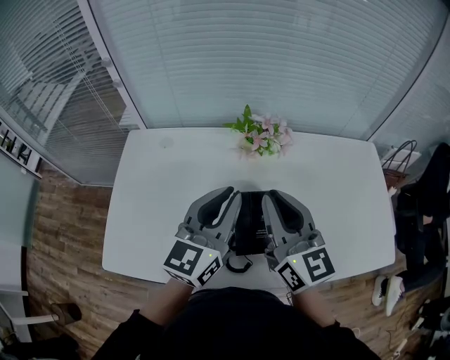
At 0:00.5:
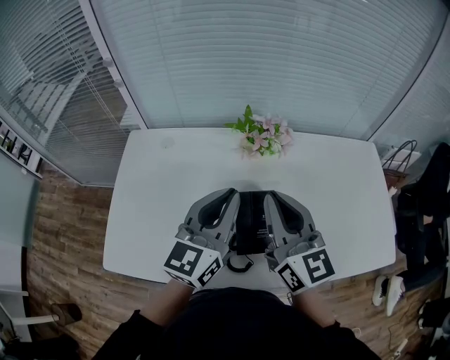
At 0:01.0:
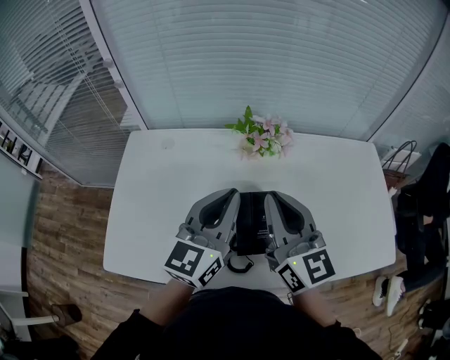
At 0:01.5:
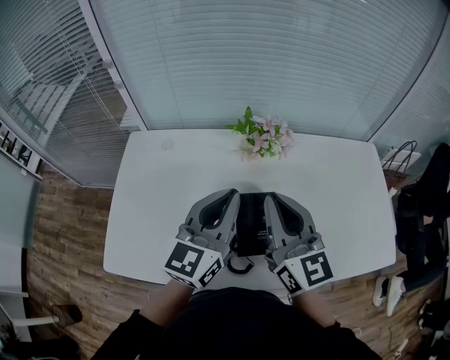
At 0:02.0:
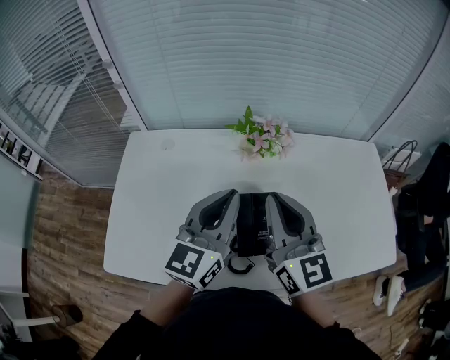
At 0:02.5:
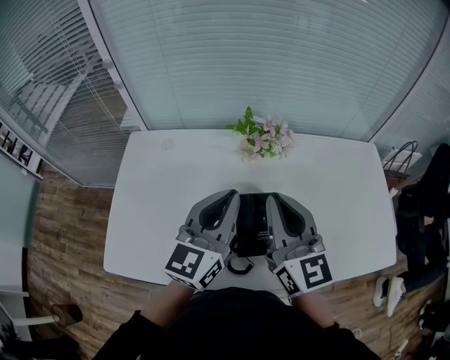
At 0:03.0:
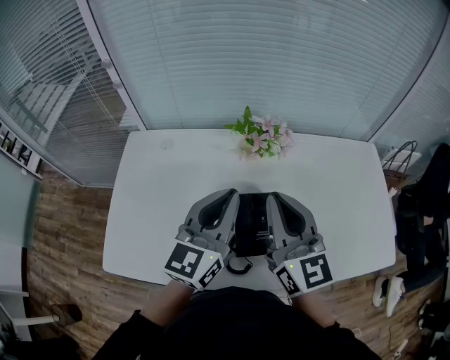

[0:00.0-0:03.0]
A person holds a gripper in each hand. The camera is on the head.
0:00.0 to 0:01.5: Both grippers stay put.
0:01.5 to 0:03.0: Both grippers stay about where they are.

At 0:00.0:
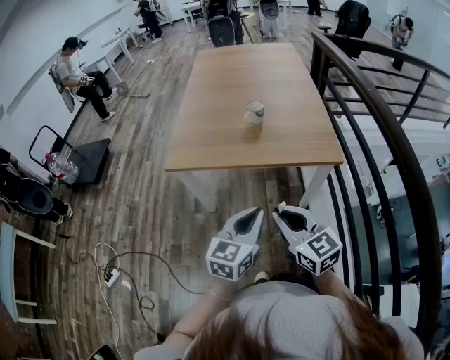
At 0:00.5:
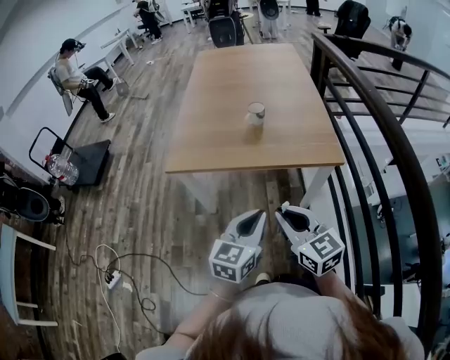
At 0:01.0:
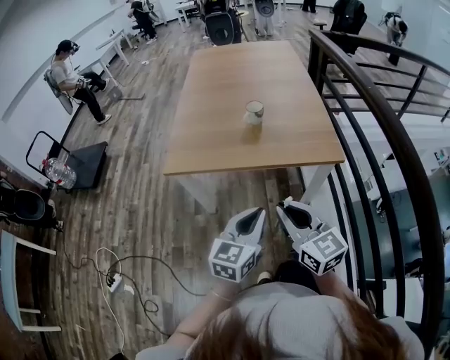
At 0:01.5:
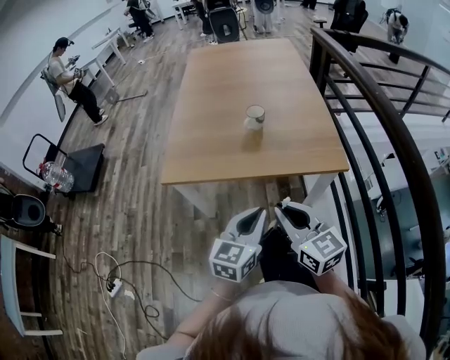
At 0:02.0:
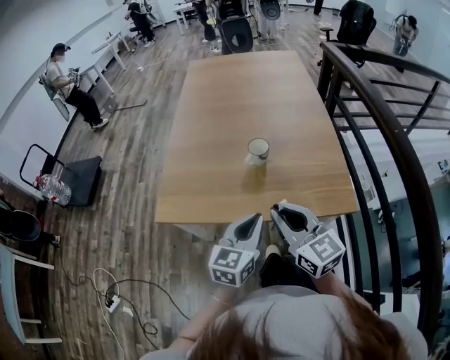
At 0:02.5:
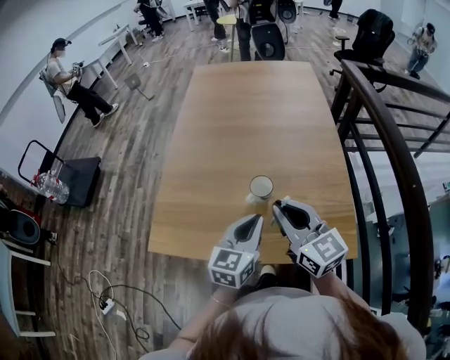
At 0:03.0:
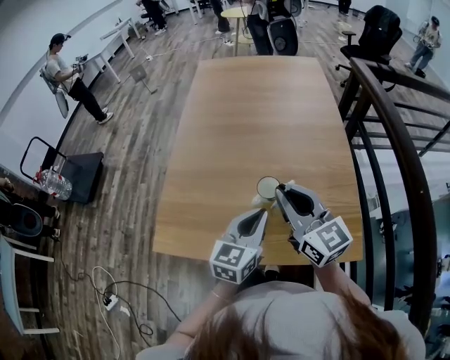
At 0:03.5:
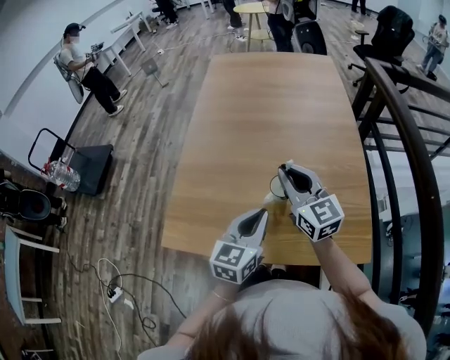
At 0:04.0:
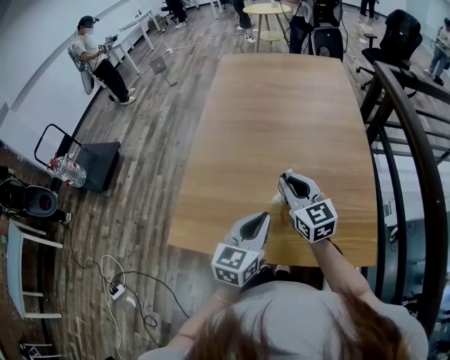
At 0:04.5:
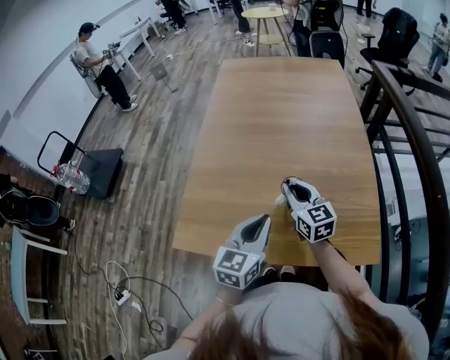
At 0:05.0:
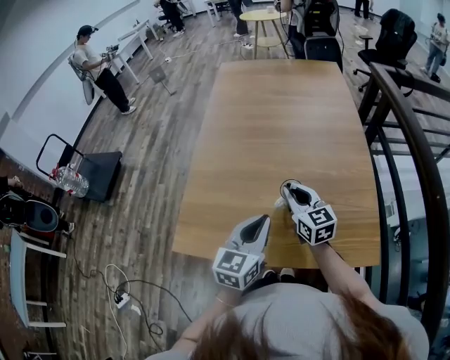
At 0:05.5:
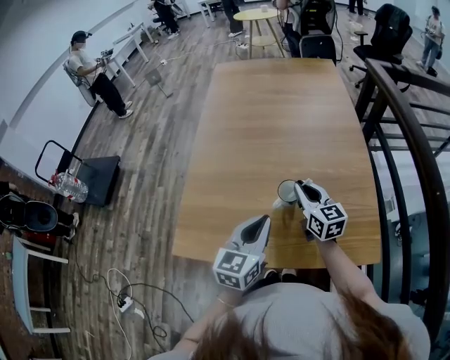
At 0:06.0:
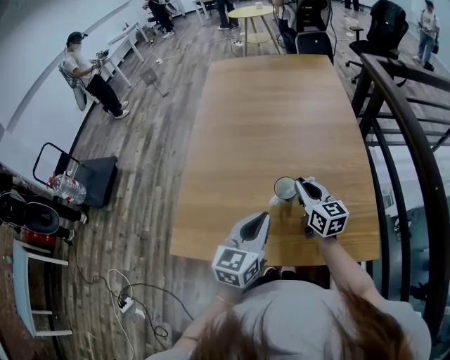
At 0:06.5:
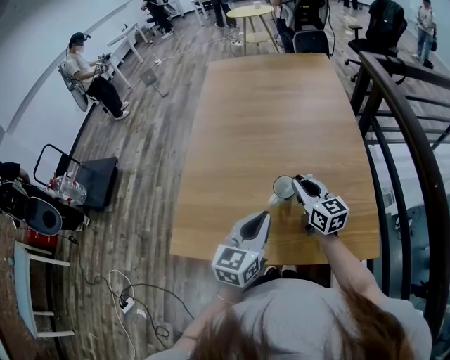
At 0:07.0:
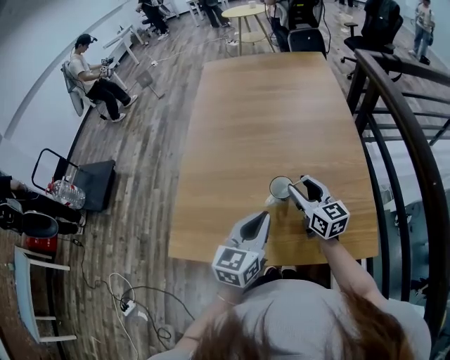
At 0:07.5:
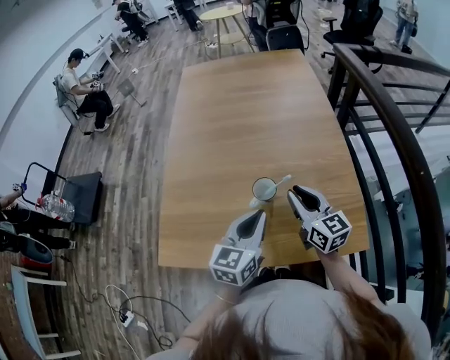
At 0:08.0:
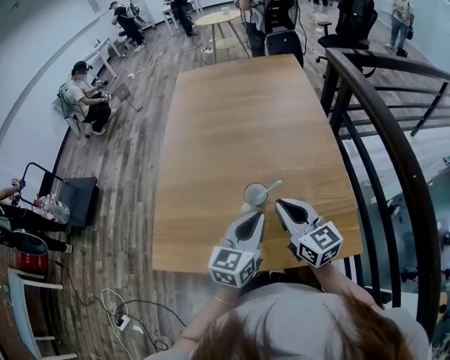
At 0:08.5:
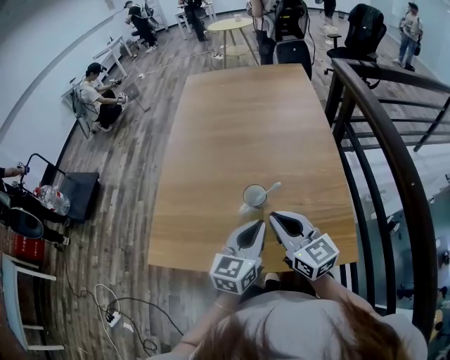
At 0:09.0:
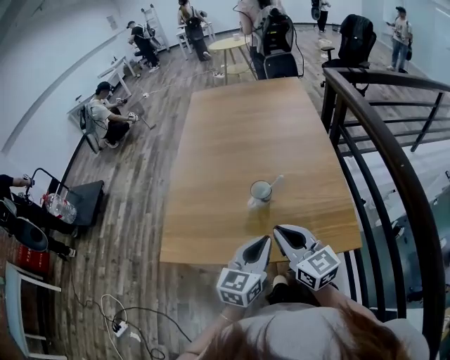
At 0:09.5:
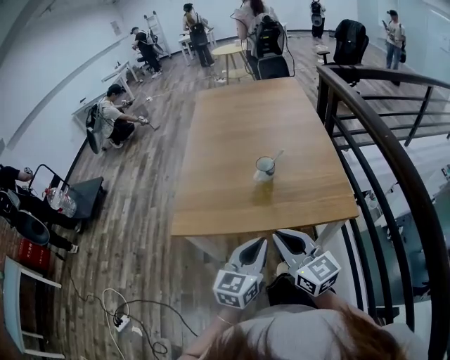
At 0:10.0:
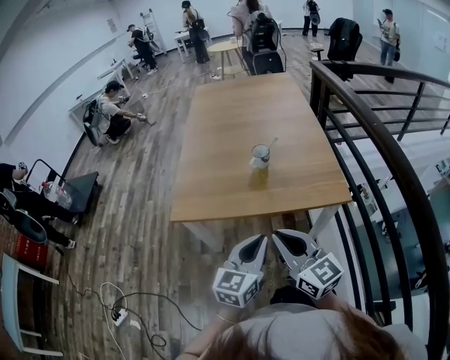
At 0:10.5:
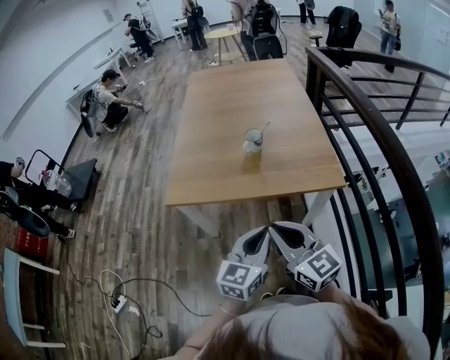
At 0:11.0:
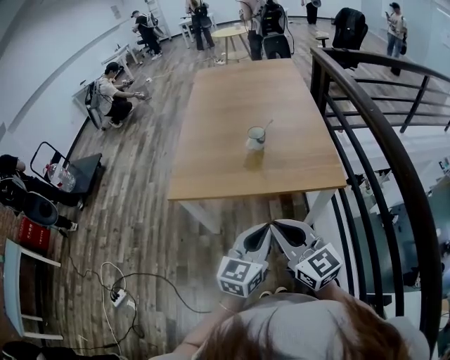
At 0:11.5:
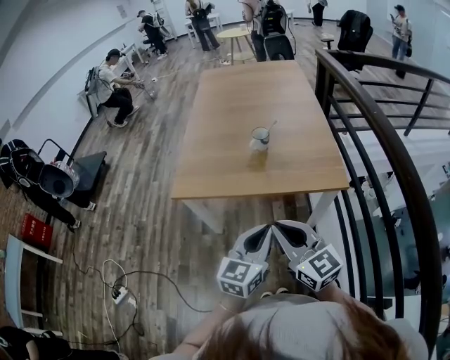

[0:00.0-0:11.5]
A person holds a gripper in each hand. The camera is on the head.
0:00.0 to 0:02.0: Both grippers move forward, about 20 cm.
0:02.0 to 0:04.0: The left gripper heads forward, covering about 15 cm; the right gripper heads forward, covering some 25 cm.
0:04.0 to 0:06.0: The right gripper heads to the right and downward, covering approximately 10 cm.
0:06.0 to 0:07.5: The right gripper heads backward, covering some 5 cm, and opens, then closes once more.
0:07.5 to 0:09.5: Both grippers move backward, some 25 cm.
0:09.5 to 0:11.5: The two grippers go some 10 cm backward.

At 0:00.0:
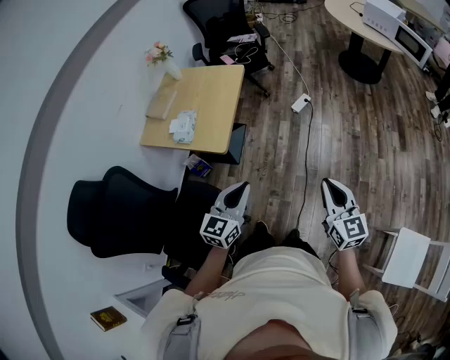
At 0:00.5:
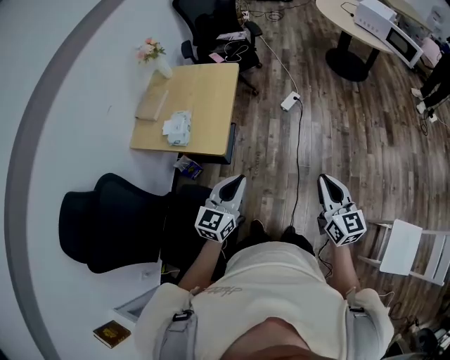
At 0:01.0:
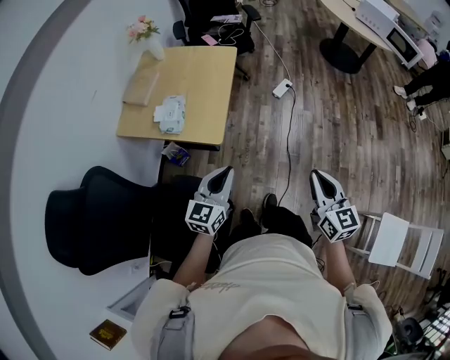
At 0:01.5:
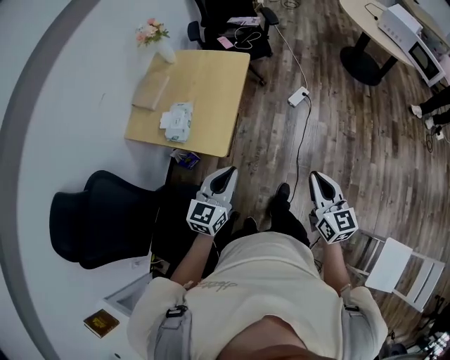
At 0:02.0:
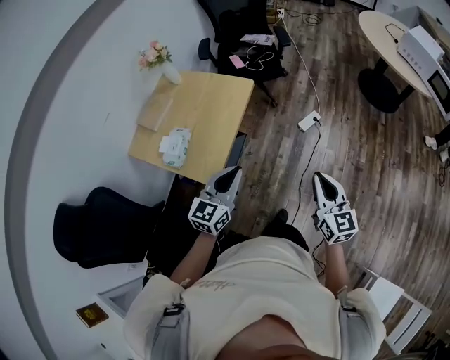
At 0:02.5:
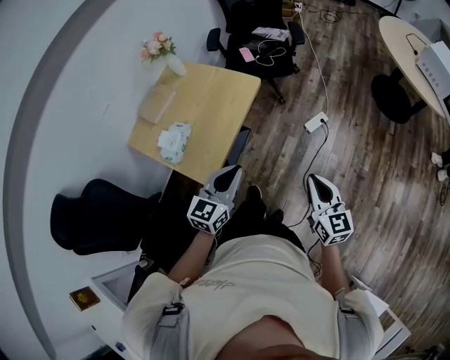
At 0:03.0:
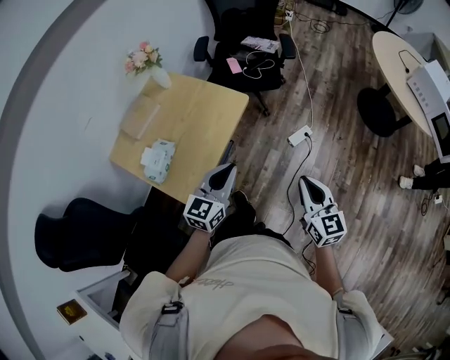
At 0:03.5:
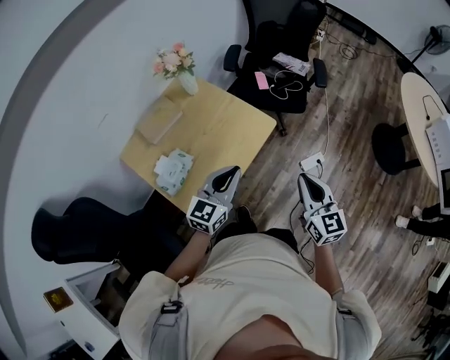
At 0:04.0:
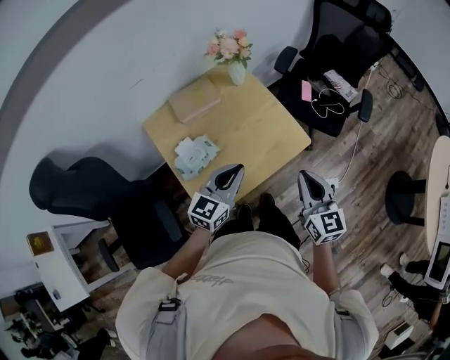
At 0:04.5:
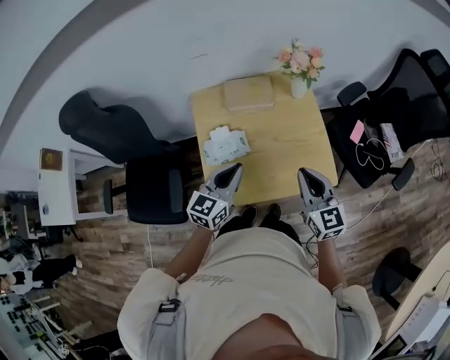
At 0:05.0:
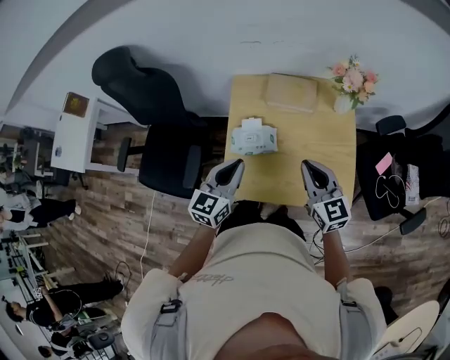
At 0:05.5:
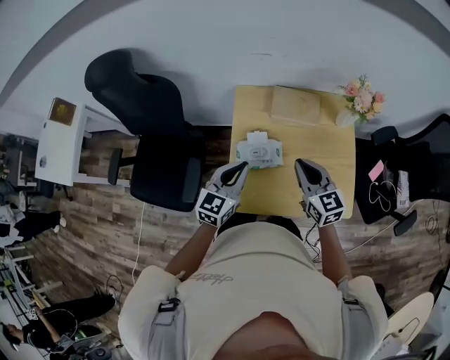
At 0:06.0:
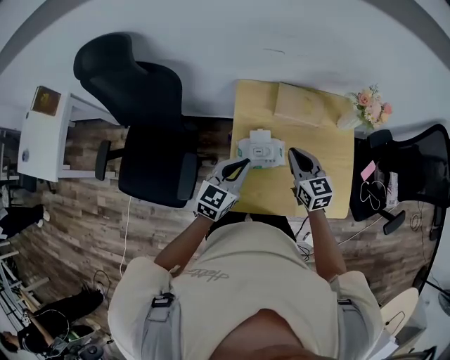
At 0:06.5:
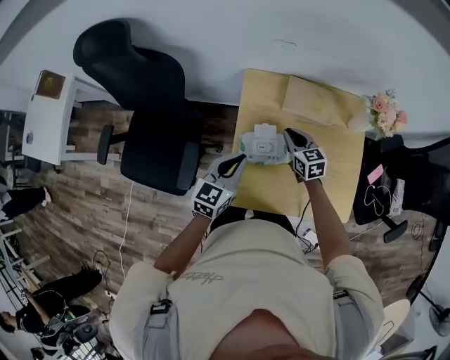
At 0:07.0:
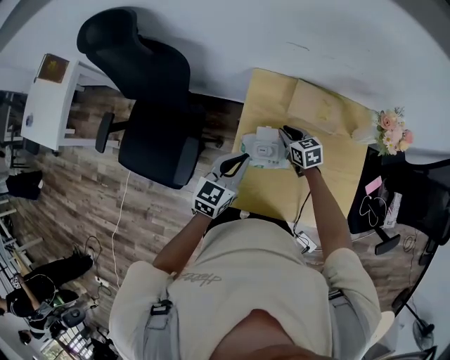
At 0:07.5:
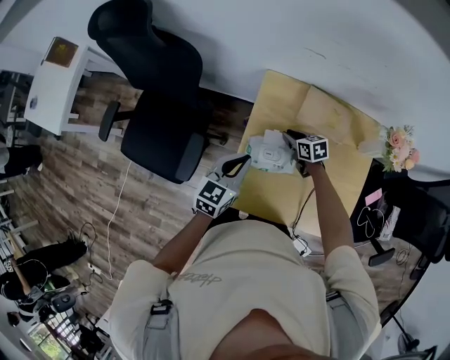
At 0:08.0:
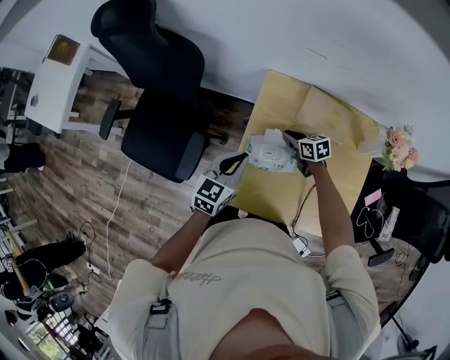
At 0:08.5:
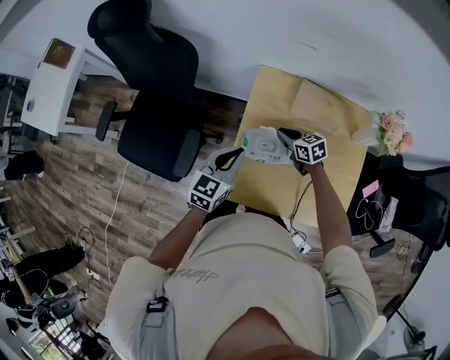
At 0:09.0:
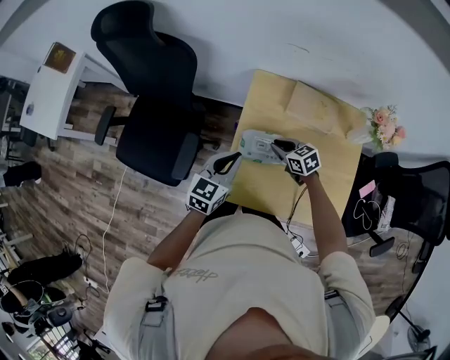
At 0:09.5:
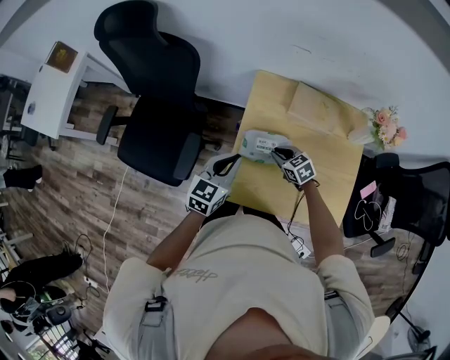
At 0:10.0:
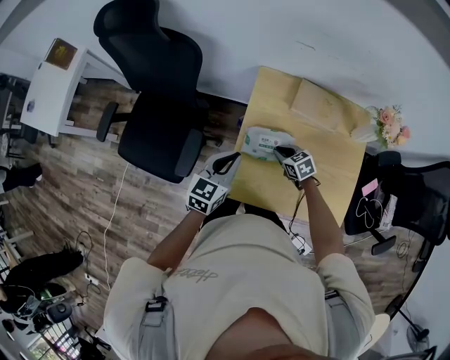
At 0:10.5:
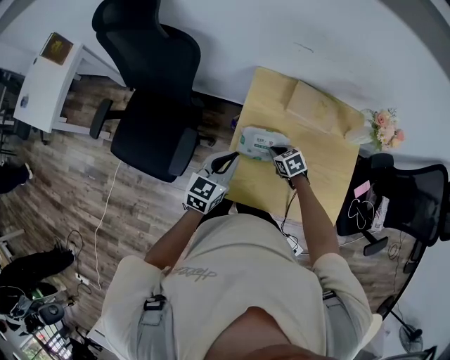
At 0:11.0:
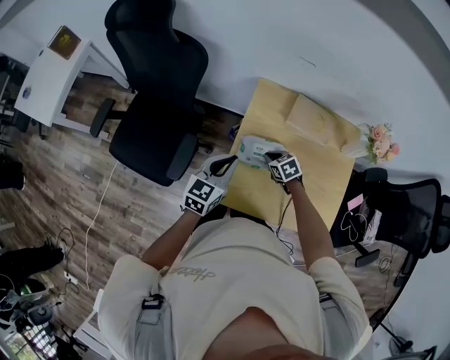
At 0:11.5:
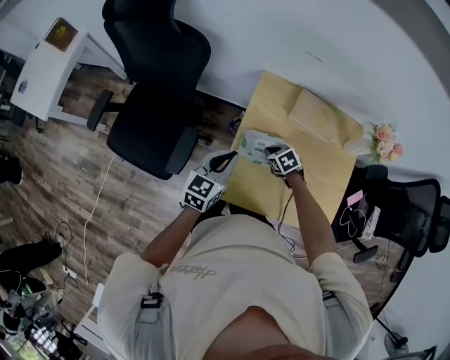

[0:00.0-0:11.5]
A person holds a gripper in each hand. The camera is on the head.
0:00.0 to 0:02.0: Both grippers move forward, approximately 30 cm.
0:02.0 to 0:04.0: The right gripper changes place by approximately 40 cm, and changes its angle by about 40 degrees. The left gripper changes place by roughly 30 cm, and rotates about 30 degrees.
0:04.0 to 0:06.0: The left gripper ends up roughly 25 cm from where it was, and rotates roughly 40 degrees. Meanwhile the right gripper shifts by about 40 cm, and rotates some 40 degrees.
0:06.0 to 0:07.5: The left gripper changes place by roughly 5 cm; the right gripper goes roughly 25 cm downward and forward, and rotates approximately 40 degrees.
0:07.5 to 0:09.5: The left gripper shifts by about 5 cm. The right gripper shifts roughly 10 cm backward, and rotates roughly 20 degrees.
0:09.5 to 0:11.5: There are only small adjustments of the grippers.

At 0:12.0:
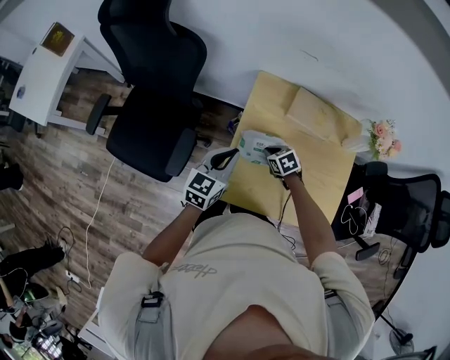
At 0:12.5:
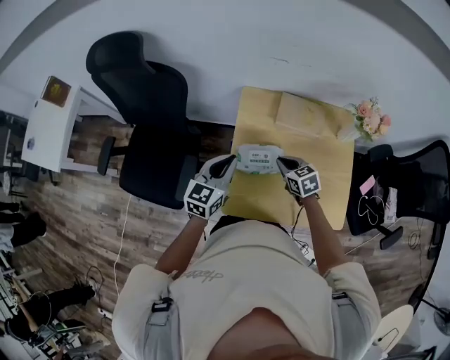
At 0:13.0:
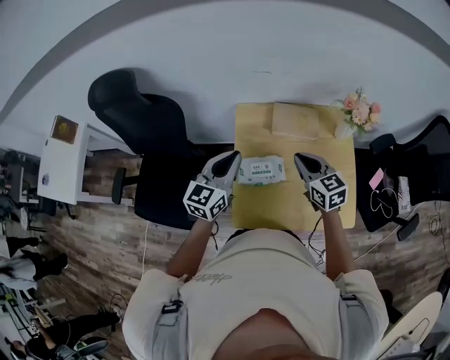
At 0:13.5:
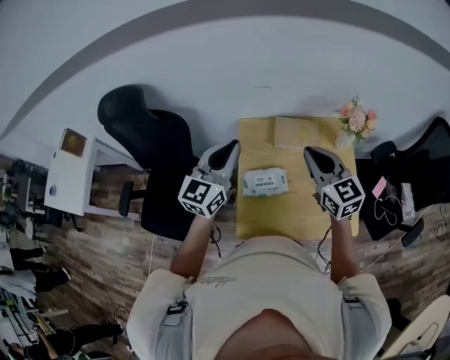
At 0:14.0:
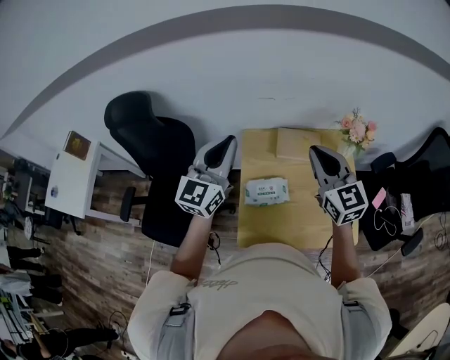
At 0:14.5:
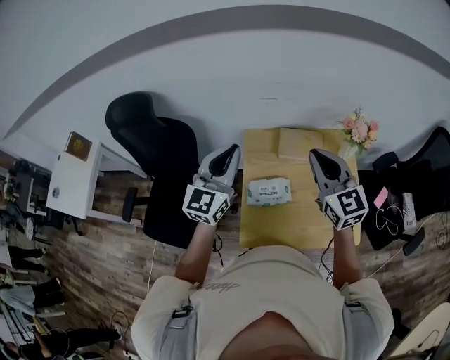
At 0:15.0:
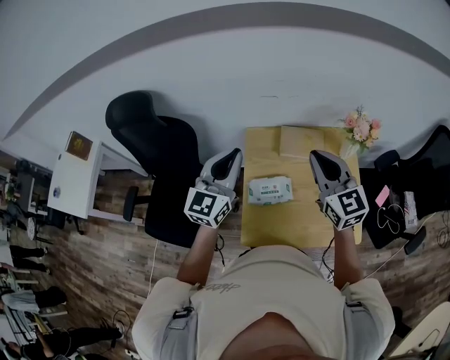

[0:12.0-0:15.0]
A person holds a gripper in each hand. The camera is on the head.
0:12.0 to 0:13.5: The left gripper goes about 20 cm upward, and changes its angle by about 20 degrees, while the right gripper travels upward by roughly 40 cm, and tips its fingers upward by roughly 50 degrees.
0:13.5 to 0:15.0: The grippers move only a little.
